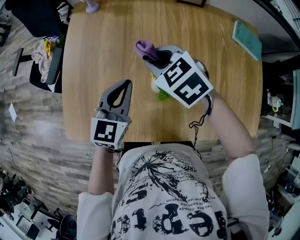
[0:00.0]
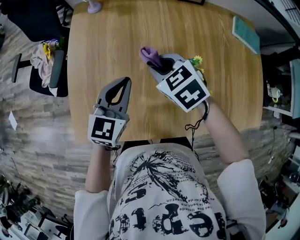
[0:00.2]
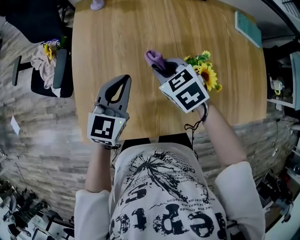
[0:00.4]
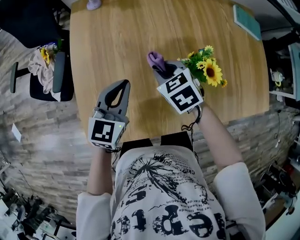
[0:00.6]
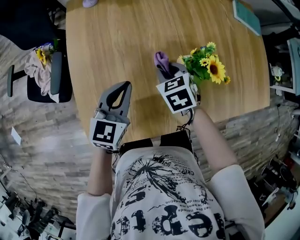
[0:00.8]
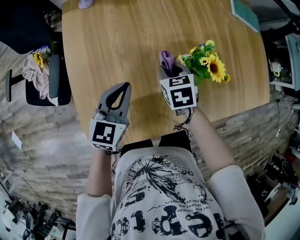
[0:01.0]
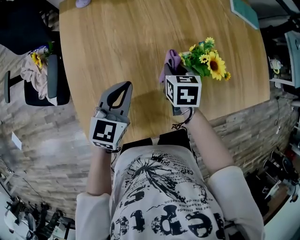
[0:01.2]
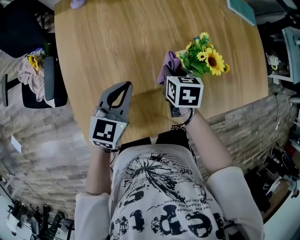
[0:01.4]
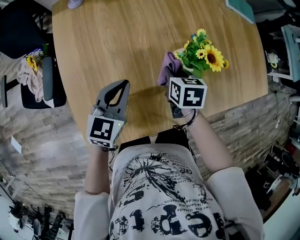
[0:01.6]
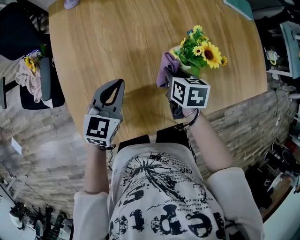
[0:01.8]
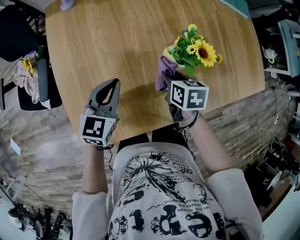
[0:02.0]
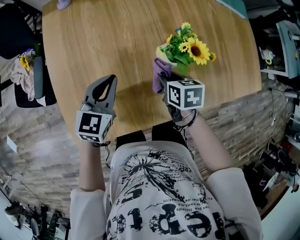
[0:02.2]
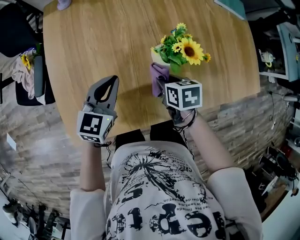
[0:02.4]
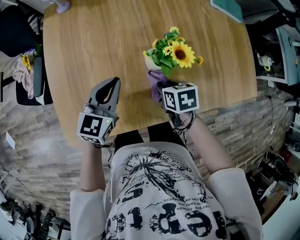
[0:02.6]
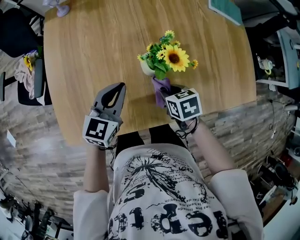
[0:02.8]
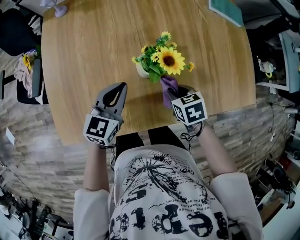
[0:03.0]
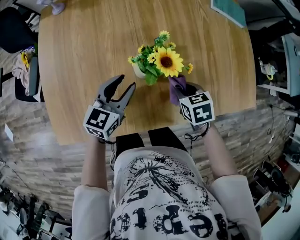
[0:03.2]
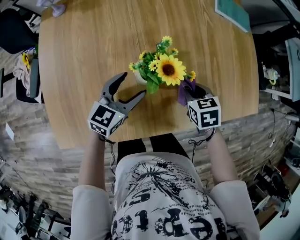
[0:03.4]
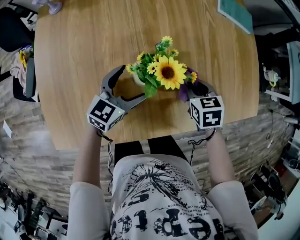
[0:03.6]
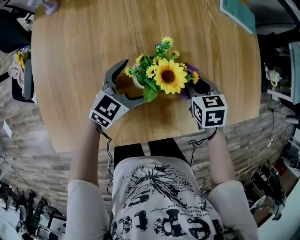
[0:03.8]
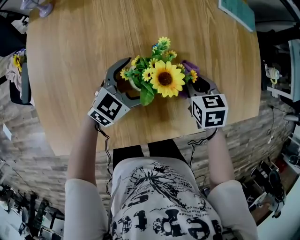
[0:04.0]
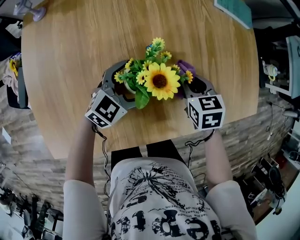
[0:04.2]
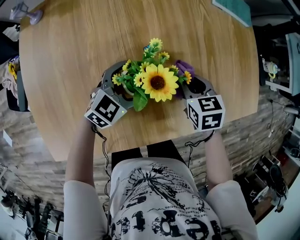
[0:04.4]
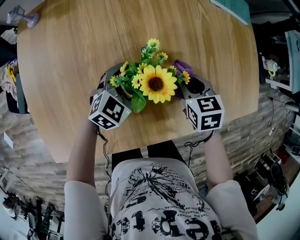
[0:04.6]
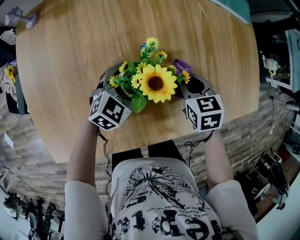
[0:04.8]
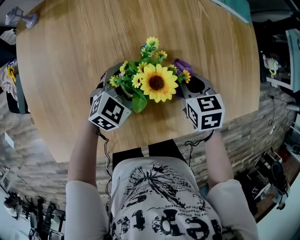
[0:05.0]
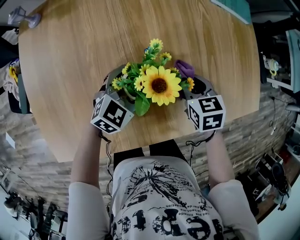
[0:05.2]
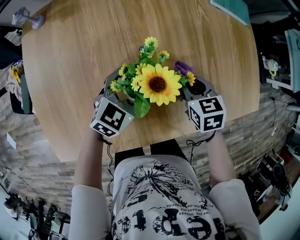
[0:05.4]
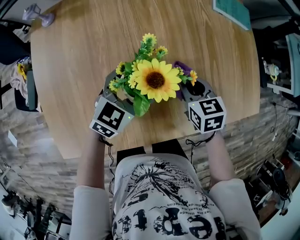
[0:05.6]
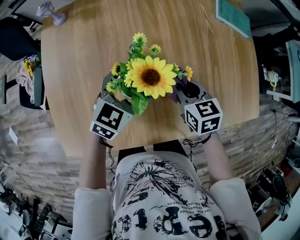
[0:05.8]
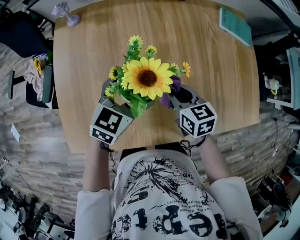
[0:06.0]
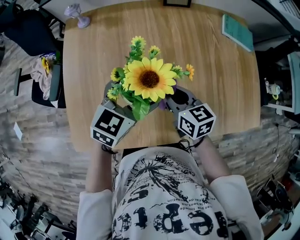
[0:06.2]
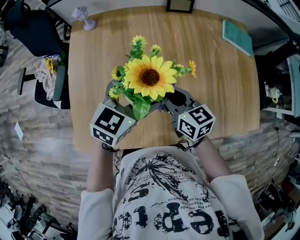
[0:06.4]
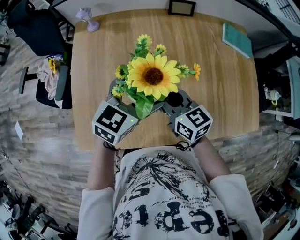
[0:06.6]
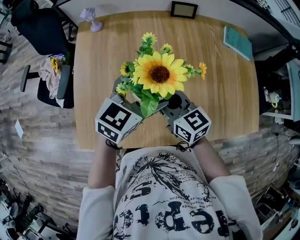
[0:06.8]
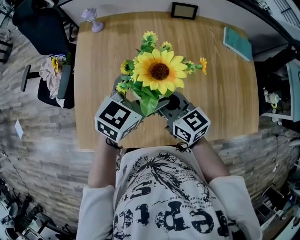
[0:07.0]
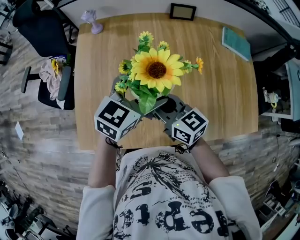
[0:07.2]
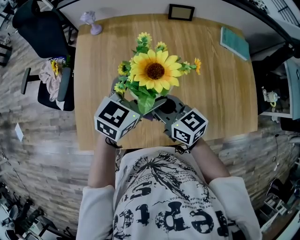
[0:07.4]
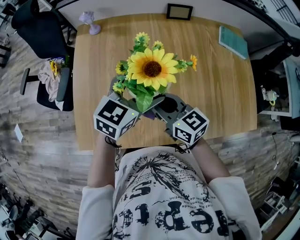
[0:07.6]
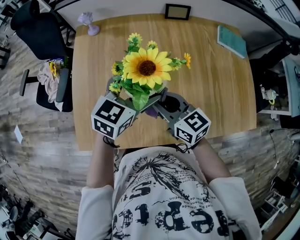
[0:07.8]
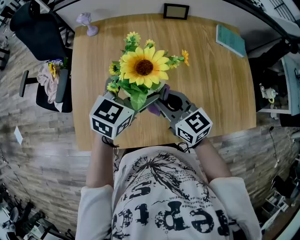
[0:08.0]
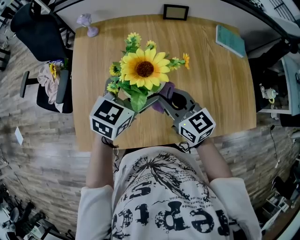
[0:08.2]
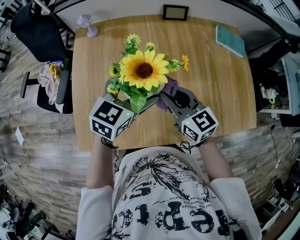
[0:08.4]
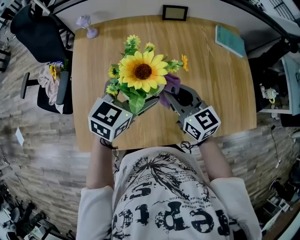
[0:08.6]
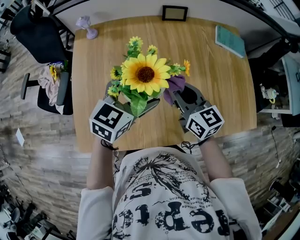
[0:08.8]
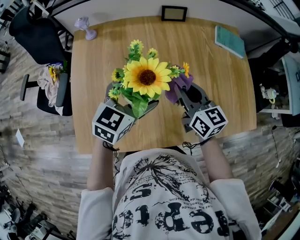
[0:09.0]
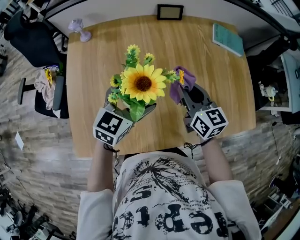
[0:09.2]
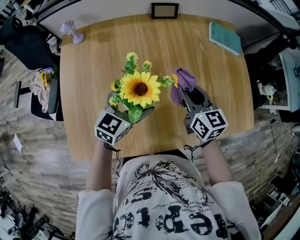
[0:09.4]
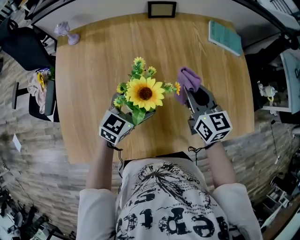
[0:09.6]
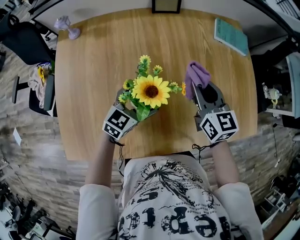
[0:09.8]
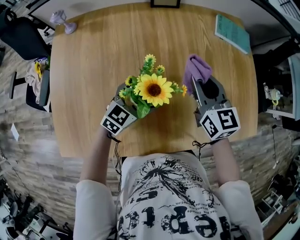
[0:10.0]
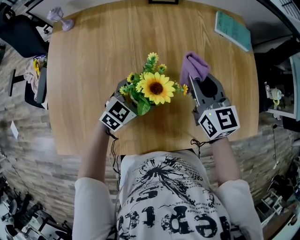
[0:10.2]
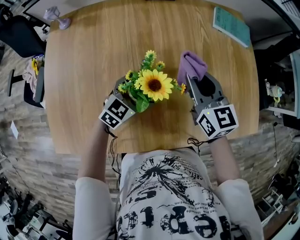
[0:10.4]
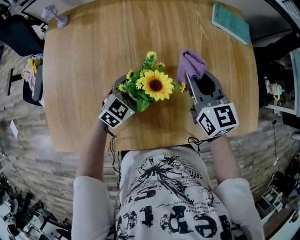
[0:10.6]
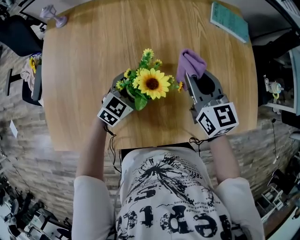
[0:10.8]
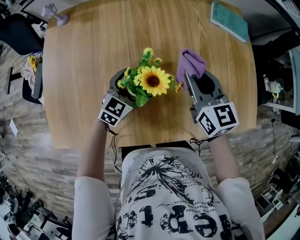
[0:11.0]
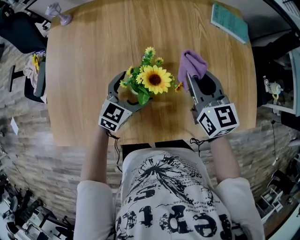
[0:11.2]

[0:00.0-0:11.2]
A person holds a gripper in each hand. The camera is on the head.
0:00.0 to 0:01.6: The right gripper goes roughly 15 cm downward, and twists approximately 60 degrees clockwise, seen from behind. Meanwhile the left gripper changes place by roughly 10 cm, and rotates roughly 20 degrees.
0:01.6 to 0:03.2: The grippers both shift to the right by about 15 cm. The right gripper rotates roughly 30 degrees.
0:03.2 to 0:04.8: The left gripper travels downward, forward and to the right by roughly 15 cm, changes its angle by approximately 40 degrees, and opens its fingers, while the right gripper heads forward, covering approximately 10 cm.
0:04.8 to 0:06.4: The left gripper is displaced upward and to the left by approximately 25 cm, and rotates approximately 30 degrees, while the right gripper shifts about 25 cm to the left and upward, and tilts its fingers roughly 30 degrees upward.
0:06.4 to 0:08.0: The right gripper changes place by about 5 cm.
0:08.0 to 0:09.6: The left gripper travels downward and to the right by approximately 15 cm. Meanwhile the right gripper travels to the right and forward by approximately 25 cm, and swivels approximately 20 degrees.
0:09.6 to 0:11.2: The left gripper travels downward by some 5 cm.

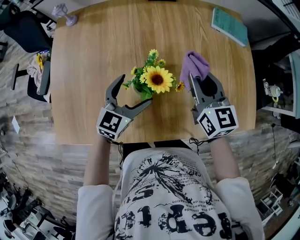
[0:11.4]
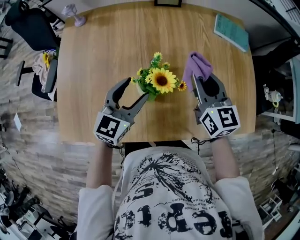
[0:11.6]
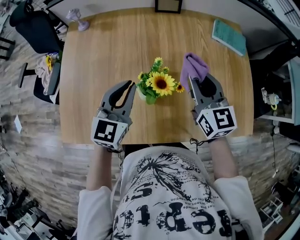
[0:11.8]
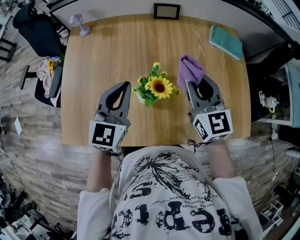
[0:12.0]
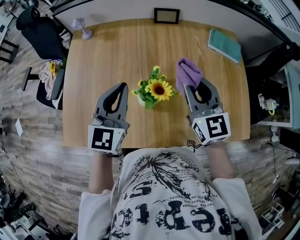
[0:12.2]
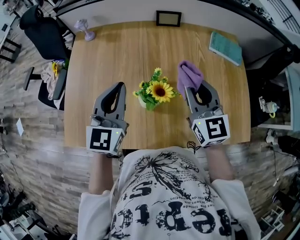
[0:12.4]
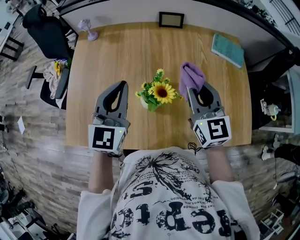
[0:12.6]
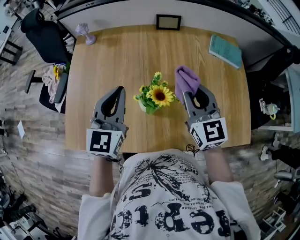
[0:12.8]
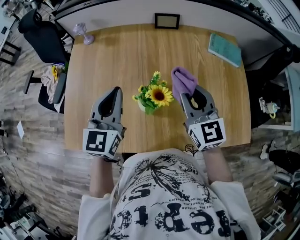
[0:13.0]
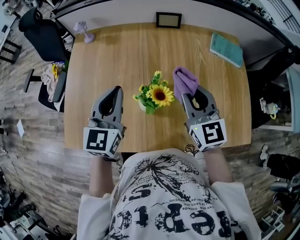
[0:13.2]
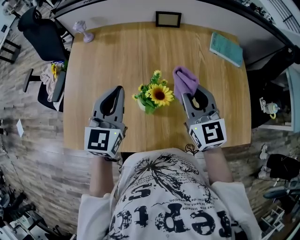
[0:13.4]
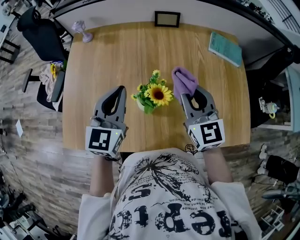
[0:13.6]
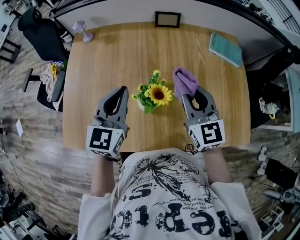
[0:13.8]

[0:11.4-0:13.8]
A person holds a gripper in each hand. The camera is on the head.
0:11.4 to 0:12.6: The right gripper moves upward, about 10 cm. Meanwhile the left gripper moves upward, about 20 cm, swivels roughly 30 degrees, and closes up.
0:12.6 to 0:13.8: There are only small adjustments of the grippers.

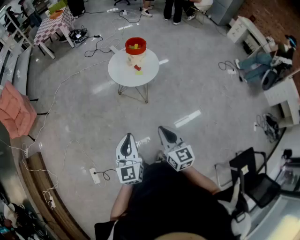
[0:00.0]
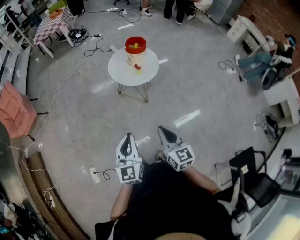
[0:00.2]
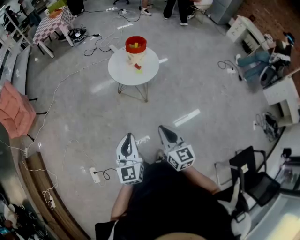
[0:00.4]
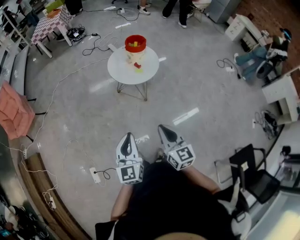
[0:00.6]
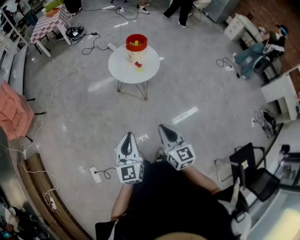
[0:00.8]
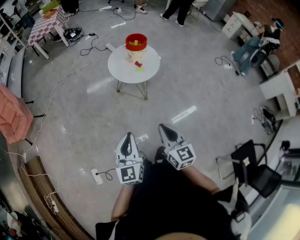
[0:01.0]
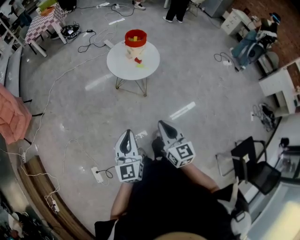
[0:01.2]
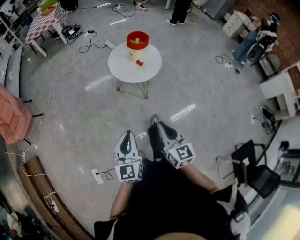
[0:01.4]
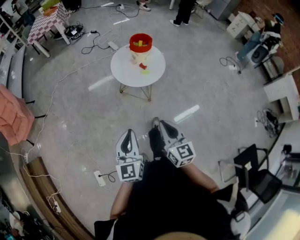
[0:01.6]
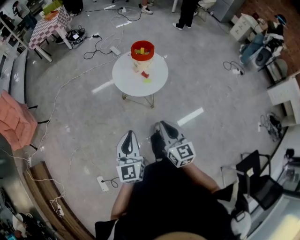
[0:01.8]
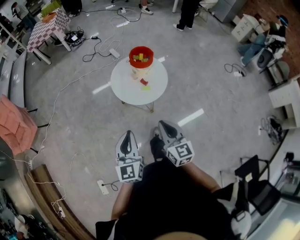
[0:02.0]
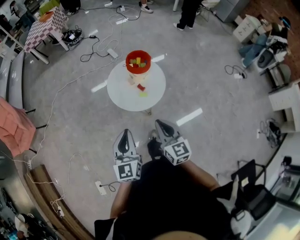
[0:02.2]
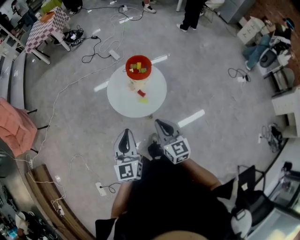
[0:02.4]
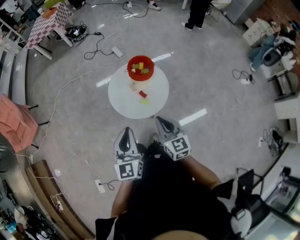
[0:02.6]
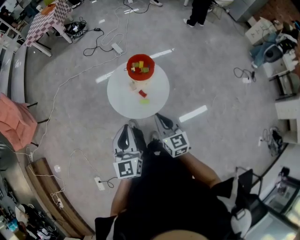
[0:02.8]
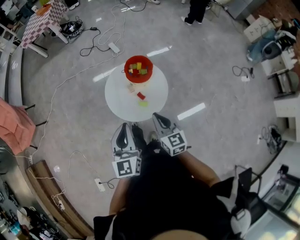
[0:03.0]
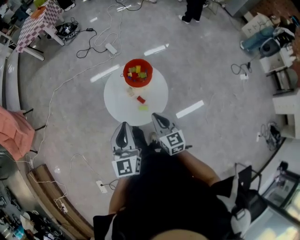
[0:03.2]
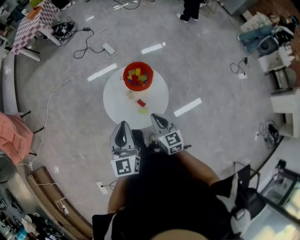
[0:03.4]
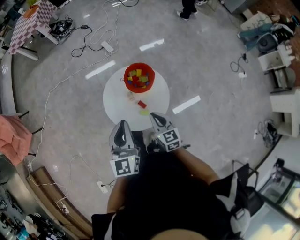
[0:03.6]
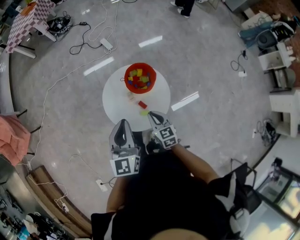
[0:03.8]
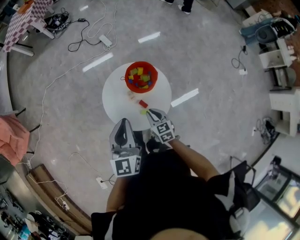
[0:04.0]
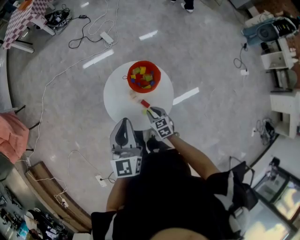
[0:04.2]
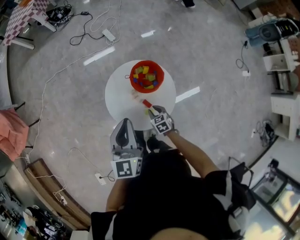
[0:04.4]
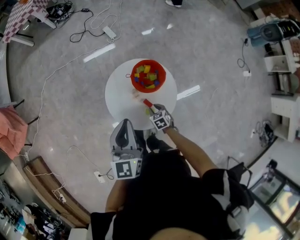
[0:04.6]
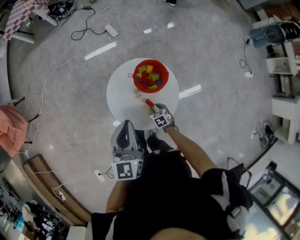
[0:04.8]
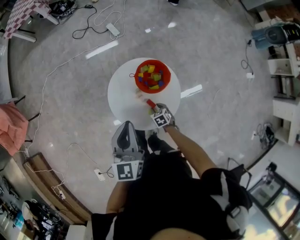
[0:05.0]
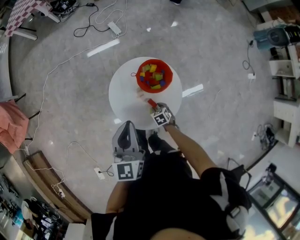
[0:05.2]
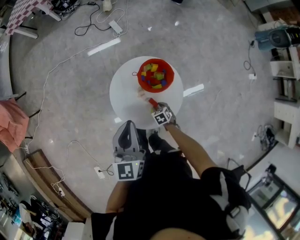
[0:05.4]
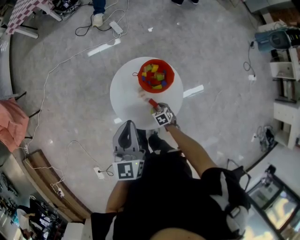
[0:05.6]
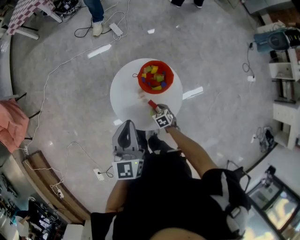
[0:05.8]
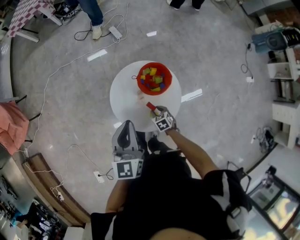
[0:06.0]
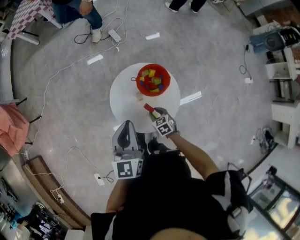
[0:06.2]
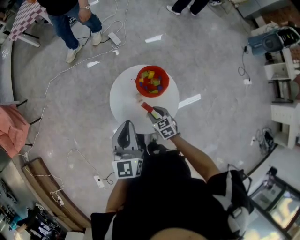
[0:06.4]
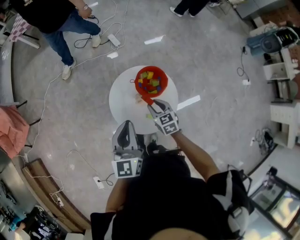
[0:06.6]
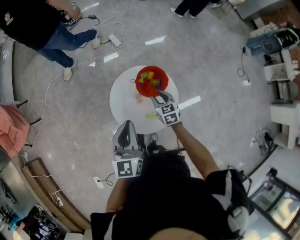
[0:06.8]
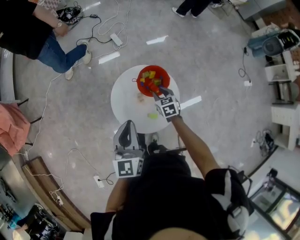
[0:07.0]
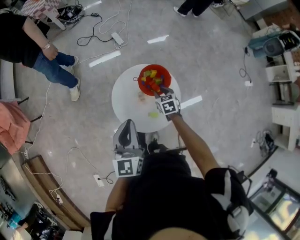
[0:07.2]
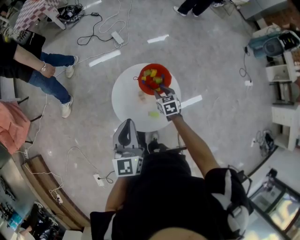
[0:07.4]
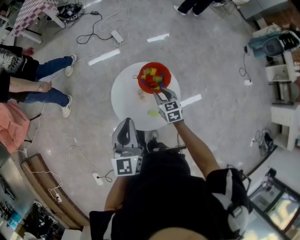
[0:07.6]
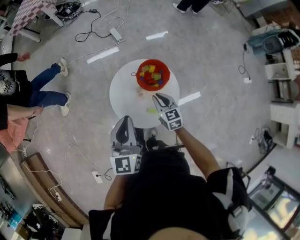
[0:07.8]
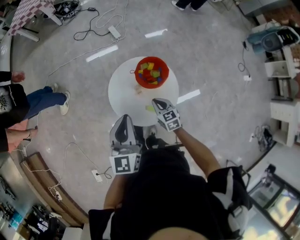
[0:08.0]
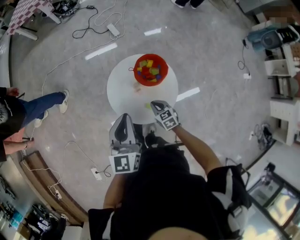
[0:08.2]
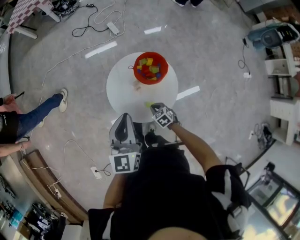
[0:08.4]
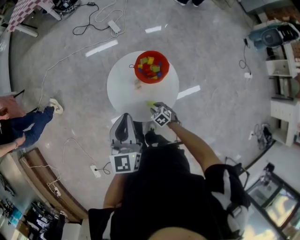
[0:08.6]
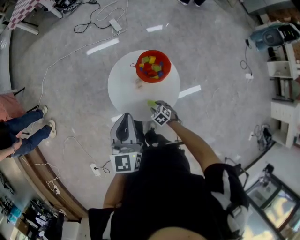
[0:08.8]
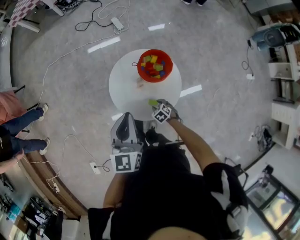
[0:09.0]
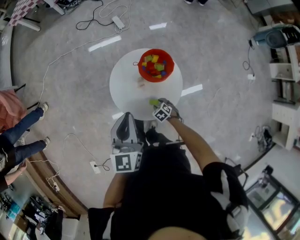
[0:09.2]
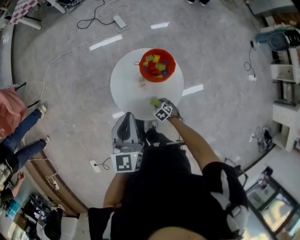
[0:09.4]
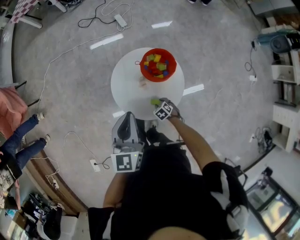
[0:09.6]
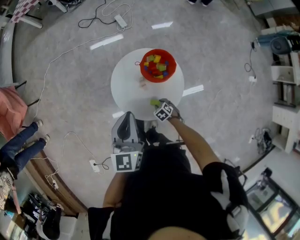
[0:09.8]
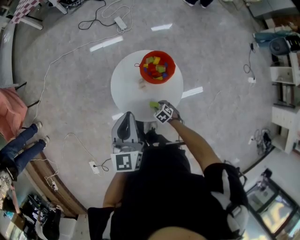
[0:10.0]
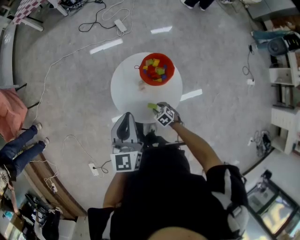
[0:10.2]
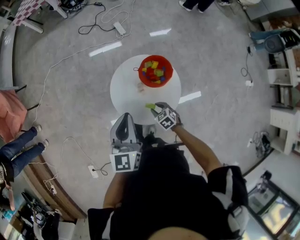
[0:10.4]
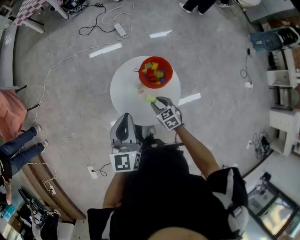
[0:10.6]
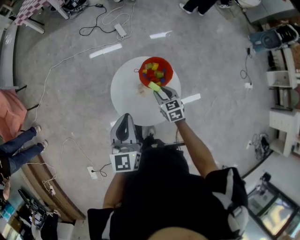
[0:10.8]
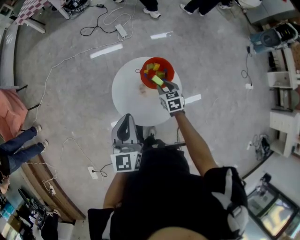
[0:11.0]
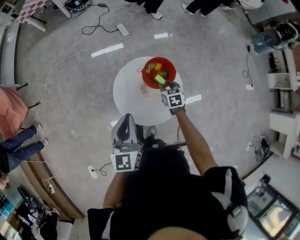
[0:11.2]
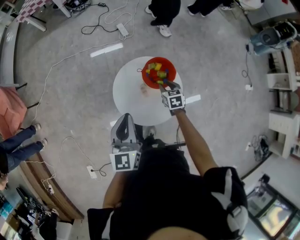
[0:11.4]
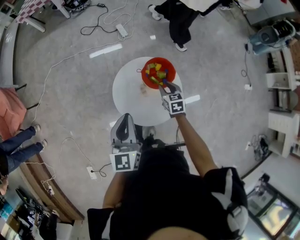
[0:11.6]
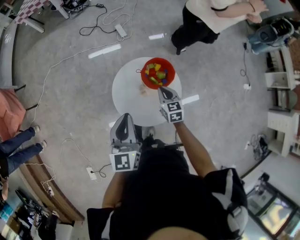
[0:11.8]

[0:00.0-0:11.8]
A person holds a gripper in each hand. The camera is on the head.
0:00.0 to 0:01.4: The grippers both shift to the left by about 5 cm.
0:01.4 to 0:03.0: The pair of grippers is taken forward, roughly 40 cm.
0:03.0 to 0:04.4: The right gripper travels downward and forward by approximately 30 cm, and tilts its fingers roughly 40 degrees downward, while the left gripper goes approximately 20 cm forward.
0:06.0 to 0:07.4: The right gripper heads upward and forward, covering some 20 cm.
0:07.4 to 0:08.8: The right gripper shifts about 25 cm backward and downward, changes its angle by about 30 degrees, and closes, then opens again.
0:08.8 to 0:10.4: The right gripper heads upward, covering approximately 10 cm.
0:10.4 to 0:11.8: The right gripper goes roughly 20 cm upward and forward, rotates about 30 degrees, and closes up.
